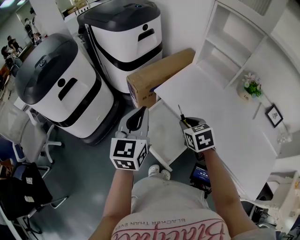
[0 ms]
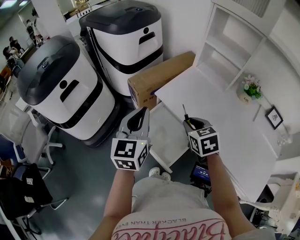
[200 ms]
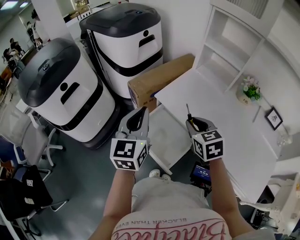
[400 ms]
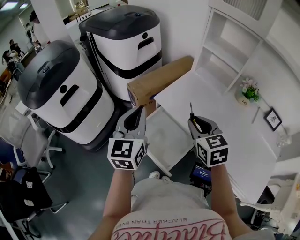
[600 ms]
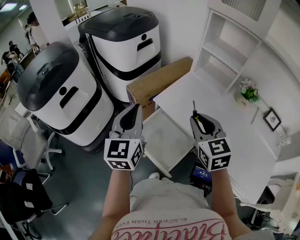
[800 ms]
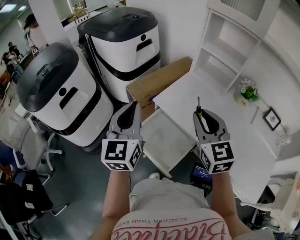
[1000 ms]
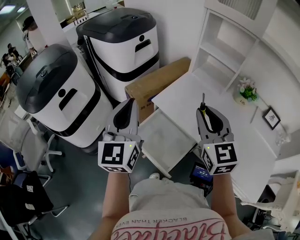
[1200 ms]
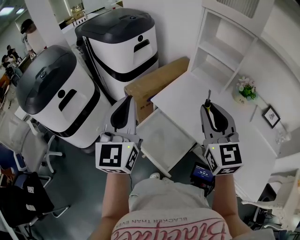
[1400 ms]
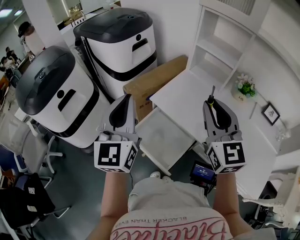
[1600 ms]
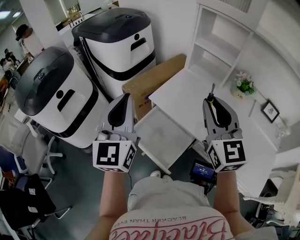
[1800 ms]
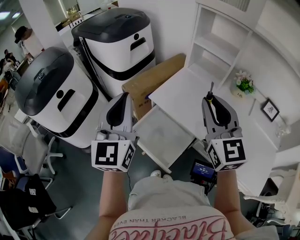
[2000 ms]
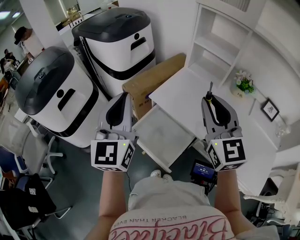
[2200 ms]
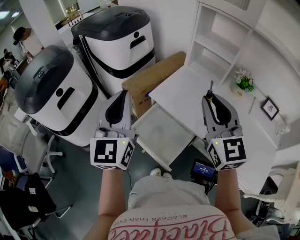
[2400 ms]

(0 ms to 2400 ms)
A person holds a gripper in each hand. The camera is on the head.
0 ms - 1200 ms: The left gripper shifts about 10 cm upward. The right gripper is displaced upward by some 20 cm, and tilts its fingers approximately 40 degrees upward.
1200 ms - 2400 ms: The right gripper changes place by some 5 cm.

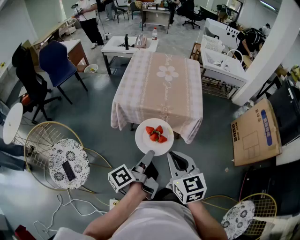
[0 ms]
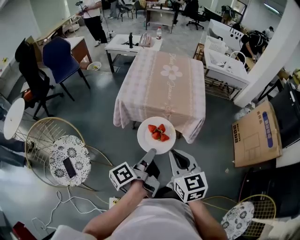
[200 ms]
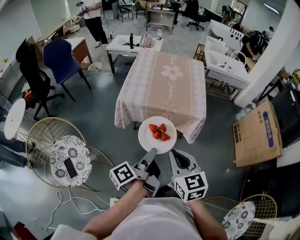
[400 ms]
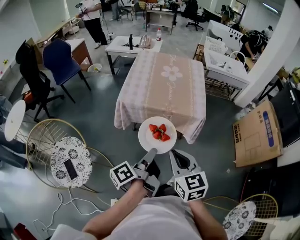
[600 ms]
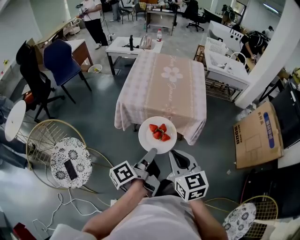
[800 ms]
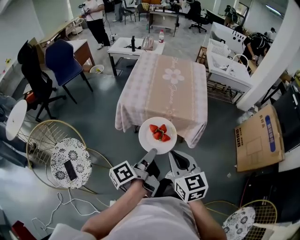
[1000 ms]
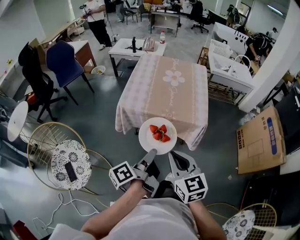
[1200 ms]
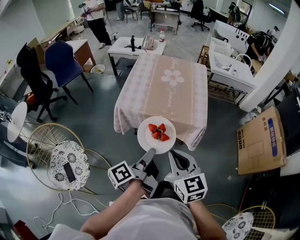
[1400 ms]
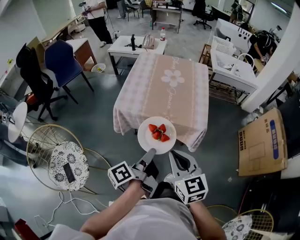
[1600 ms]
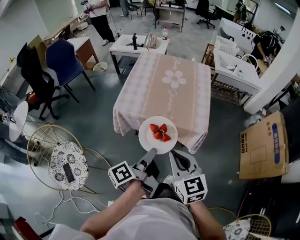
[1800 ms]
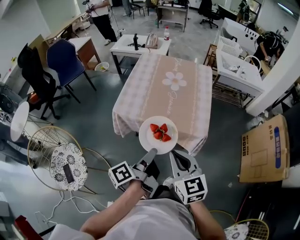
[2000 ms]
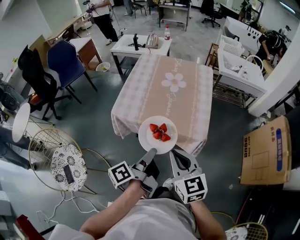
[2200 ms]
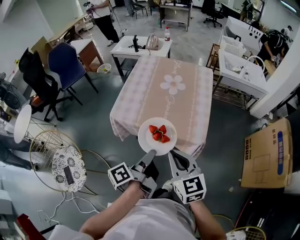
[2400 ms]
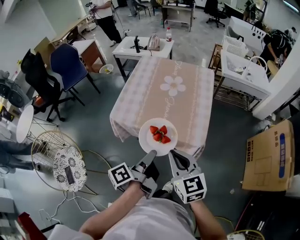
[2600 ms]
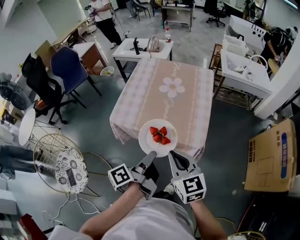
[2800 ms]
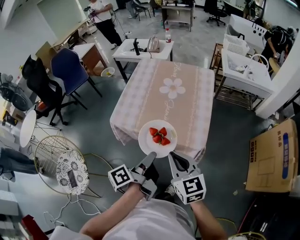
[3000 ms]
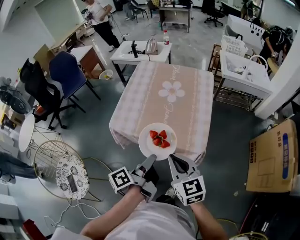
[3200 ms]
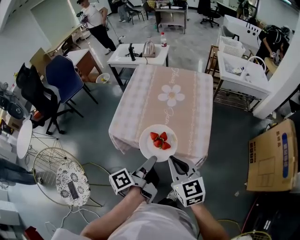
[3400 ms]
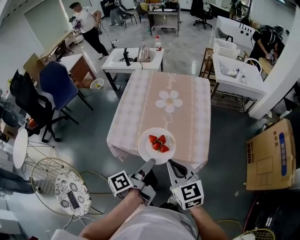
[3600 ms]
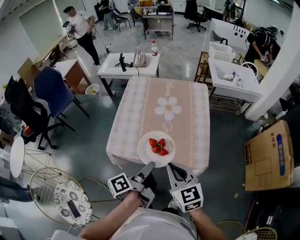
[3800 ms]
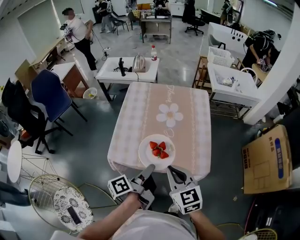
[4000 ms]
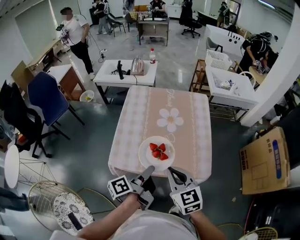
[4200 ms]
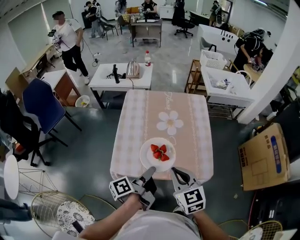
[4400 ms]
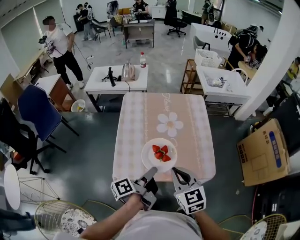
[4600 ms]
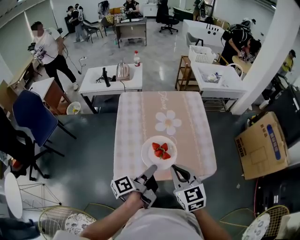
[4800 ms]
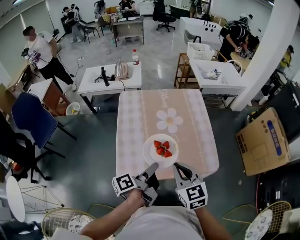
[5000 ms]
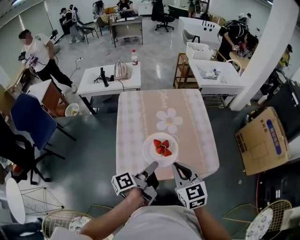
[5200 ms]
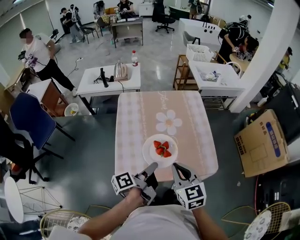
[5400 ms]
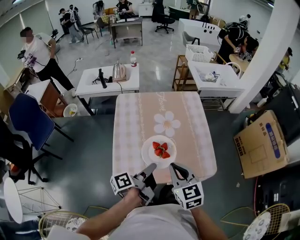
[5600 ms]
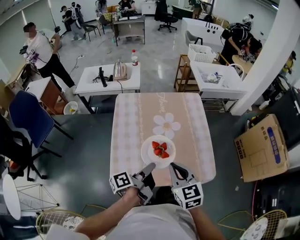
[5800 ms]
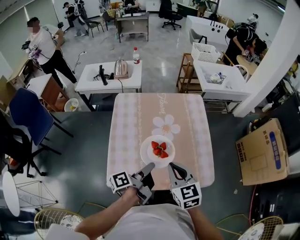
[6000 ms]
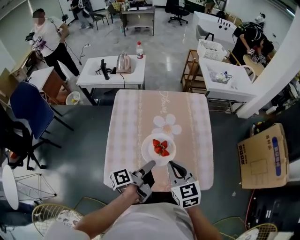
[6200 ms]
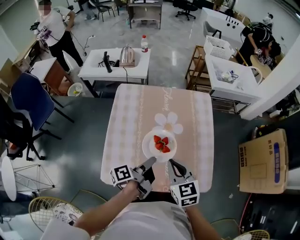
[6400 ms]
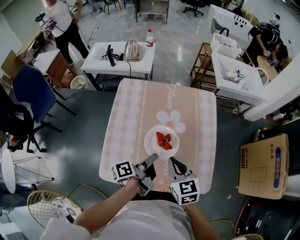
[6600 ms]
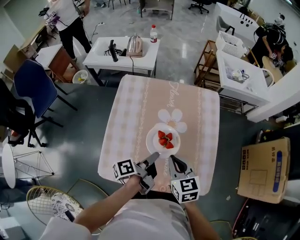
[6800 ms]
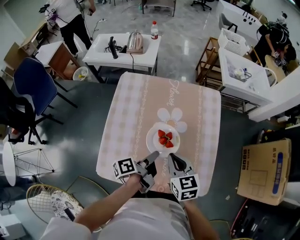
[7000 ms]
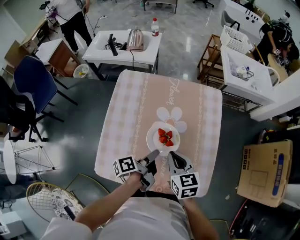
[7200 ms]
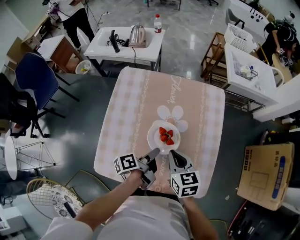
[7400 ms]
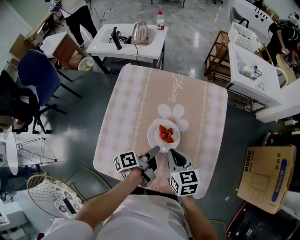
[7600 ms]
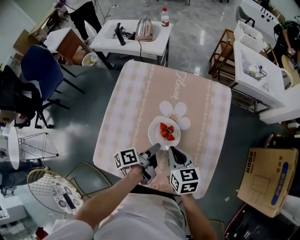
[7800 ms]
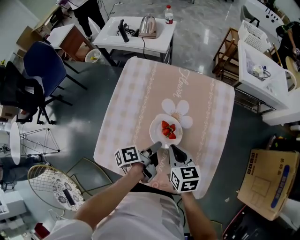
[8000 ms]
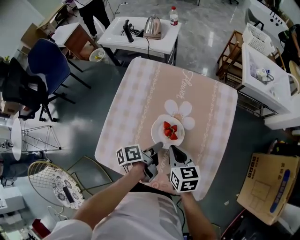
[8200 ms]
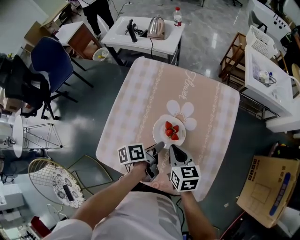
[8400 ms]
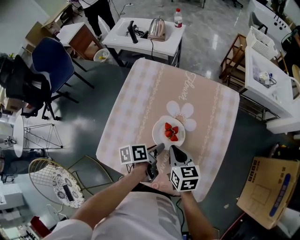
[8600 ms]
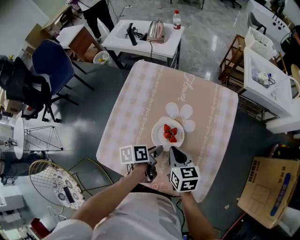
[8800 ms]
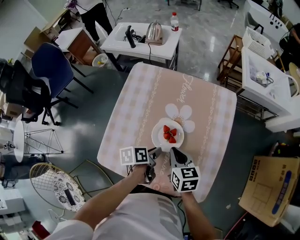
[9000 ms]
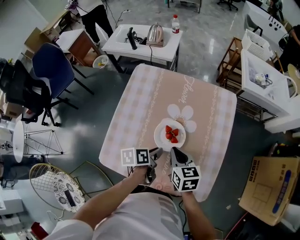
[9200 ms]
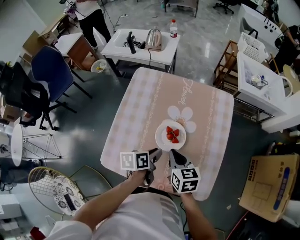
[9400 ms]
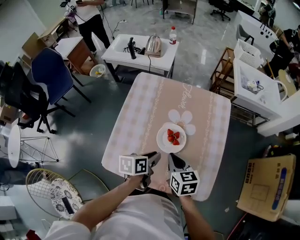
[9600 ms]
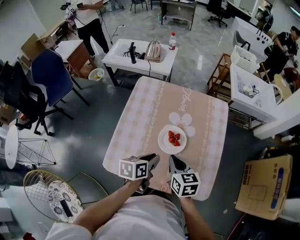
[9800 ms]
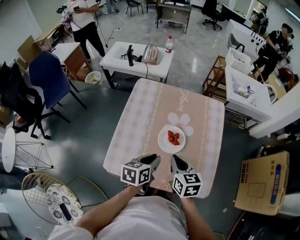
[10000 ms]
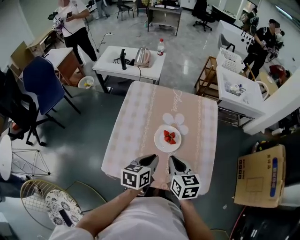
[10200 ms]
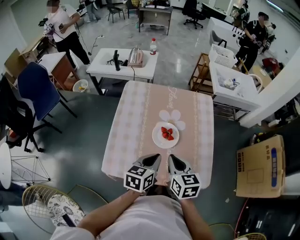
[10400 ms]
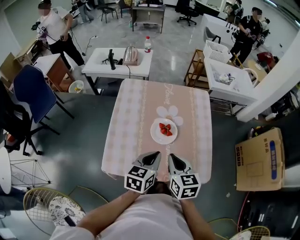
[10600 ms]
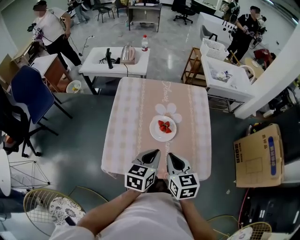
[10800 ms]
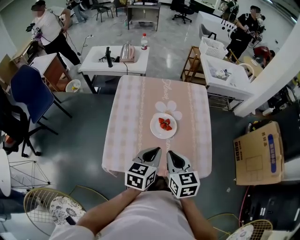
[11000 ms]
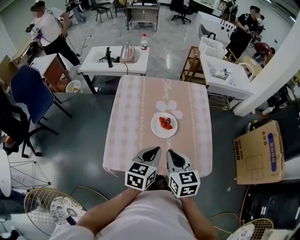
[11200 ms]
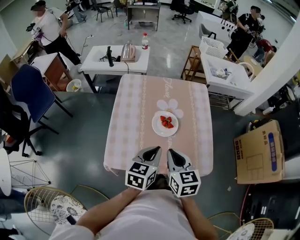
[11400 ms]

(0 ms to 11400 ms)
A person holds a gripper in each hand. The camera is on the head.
0 ms - 1400 ms: The right gripper ends up roughly 5 cm from where it was.
1400 ms - 2800 ms: The right gripper changes place by roughly 15 cm.
2800 ms - 4200 ms: The right gripper ends up approximately 15 cm from where it was.
4200 ms - 5600 ms: The right gripper ends up approximately 5 cm from where it was.
5600 ms - 7200 ms: The right gripper ends up about 20 cm from where it was.
8600 ms - 10000 ms: The right gripper heads upward, covering about 5 cm.
10000 ms - 11400 ms: The right gripper moves about 10 cm.

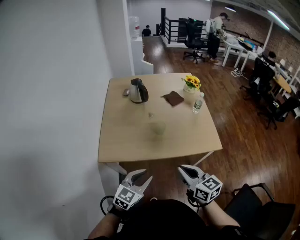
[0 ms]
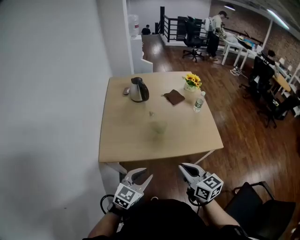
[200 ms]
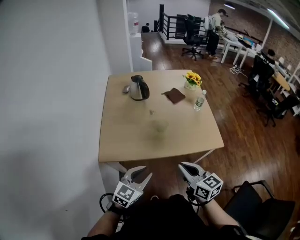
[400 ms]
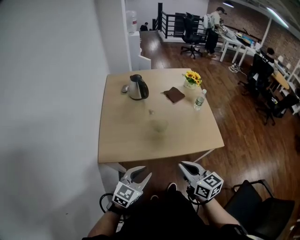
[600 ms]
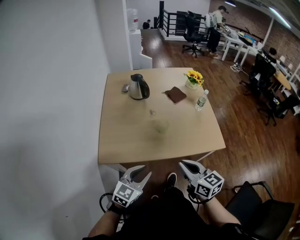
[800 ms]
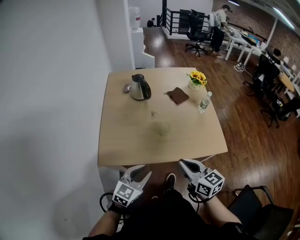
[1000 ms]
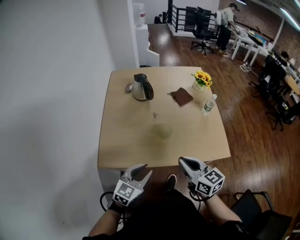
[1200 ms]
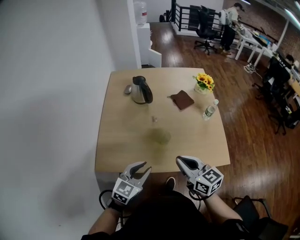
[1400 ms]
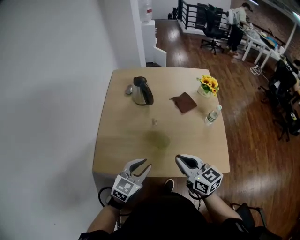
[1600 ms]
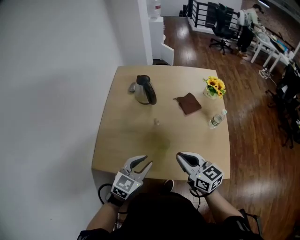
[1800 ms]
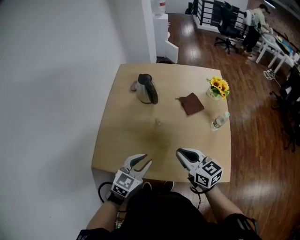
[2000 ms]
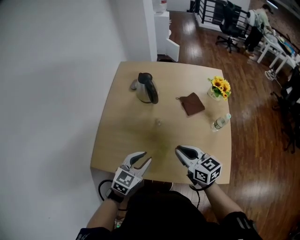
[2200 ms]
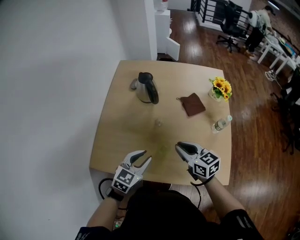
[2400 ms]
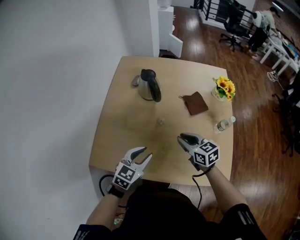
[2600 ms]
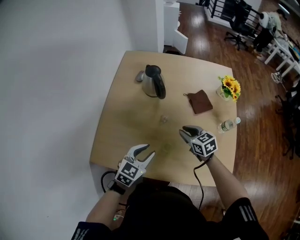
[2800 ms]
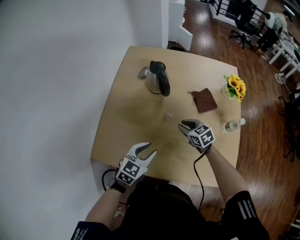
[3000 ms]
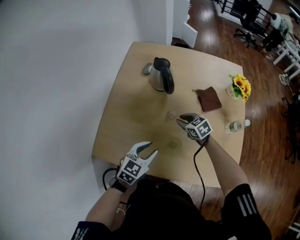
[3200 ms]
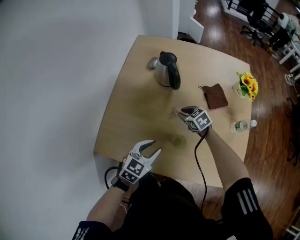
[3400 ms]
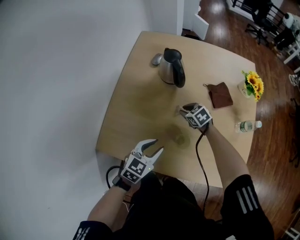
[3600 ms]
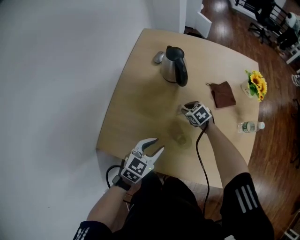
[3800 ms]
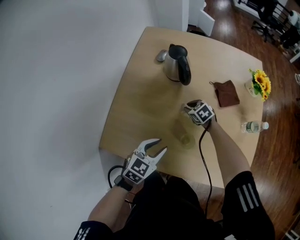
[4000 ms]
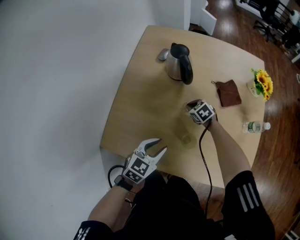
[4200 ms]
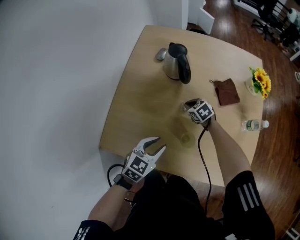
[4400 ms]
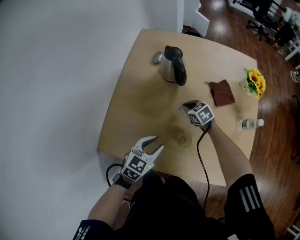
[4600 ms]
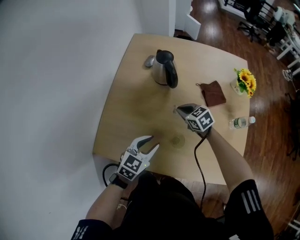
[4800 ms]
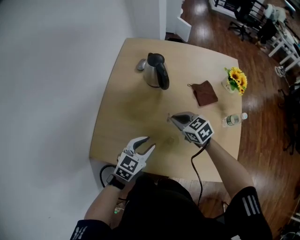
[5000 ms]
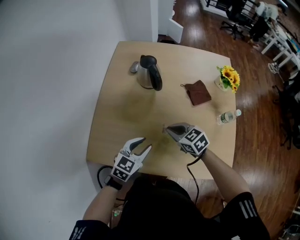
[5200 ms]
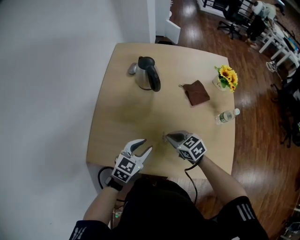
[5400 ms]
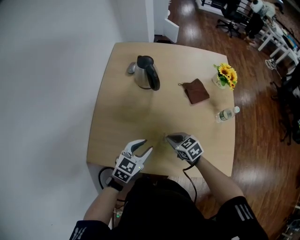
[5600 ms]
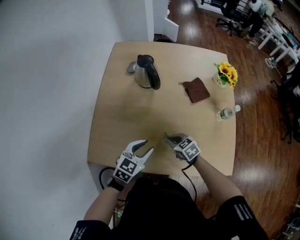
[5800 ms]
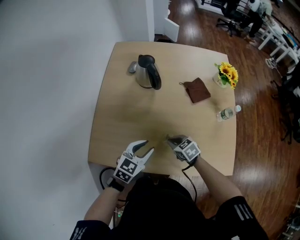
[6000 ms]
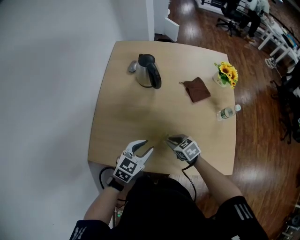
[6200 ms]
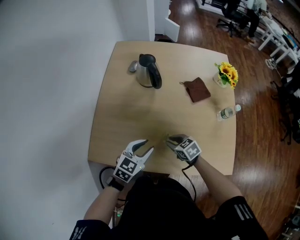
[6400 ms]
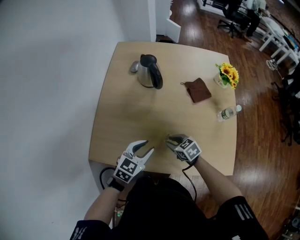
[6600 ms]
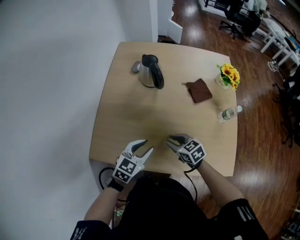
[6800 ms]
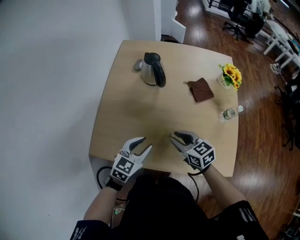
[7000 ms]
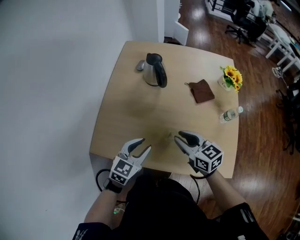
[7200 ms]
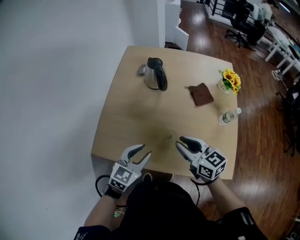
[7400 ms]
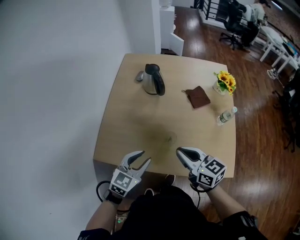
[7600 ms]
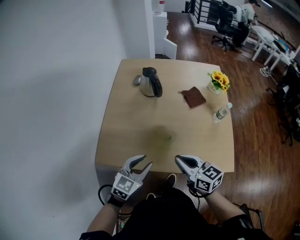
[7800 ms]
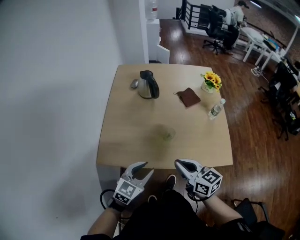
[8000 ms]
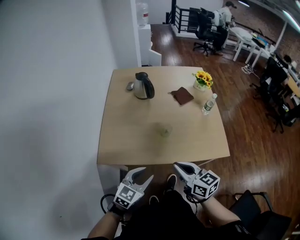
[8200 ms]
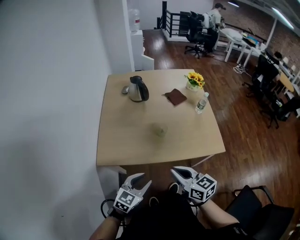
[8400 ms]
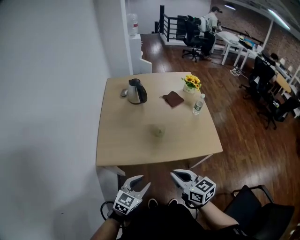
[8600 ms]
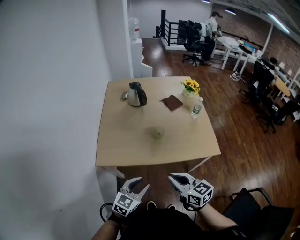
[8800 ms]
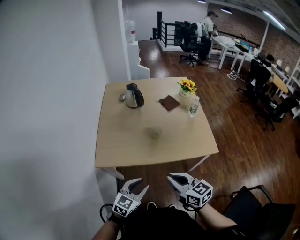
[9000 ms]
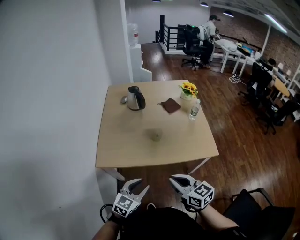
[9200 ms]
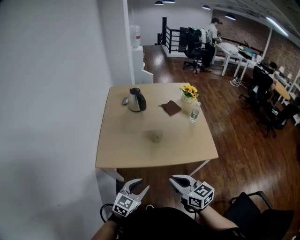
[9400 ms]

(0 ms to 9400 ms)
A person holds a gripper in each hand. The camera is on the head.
0 ms - 1600 ms: Both grippers move forward, about 25 cm.
1600 ms - 3200 ms: The left gripper travels forward and downward by roughly 15 cm, while the right gripper shifts approximately 35 cm forward and downward, tips its fingers downward by about 30 degrees, and opens up.
3200 ms - 4800 ms: The right gripper moves about 10 cm downward and comes back, and closes its fingers.
4800 ms - 6200 ms: The right gripper shifts roughly 15 cm backward.
6200 ms - 7800 ms: The left gripper travels backward and upward by approximately 15 cm, while the right gripper shifts roughly 25 cm upward and backward, and angles its fingers upward, by some 30 degrees.
7800 ms - 9400 ms: Both grippers travel together backward, approximately 25 cm.

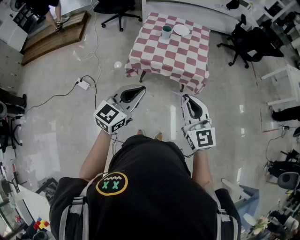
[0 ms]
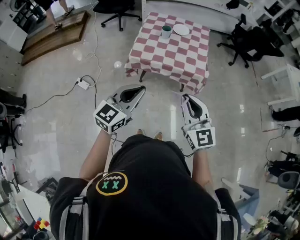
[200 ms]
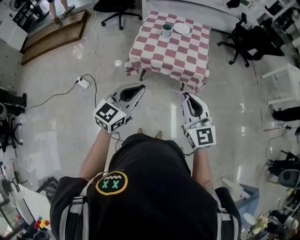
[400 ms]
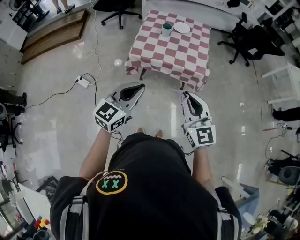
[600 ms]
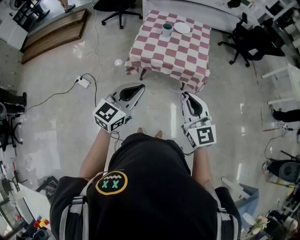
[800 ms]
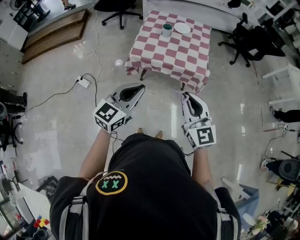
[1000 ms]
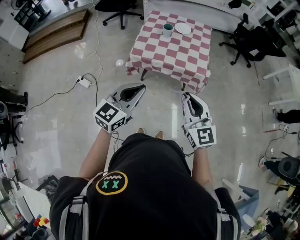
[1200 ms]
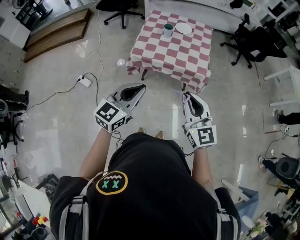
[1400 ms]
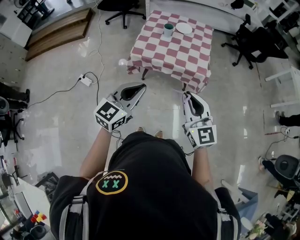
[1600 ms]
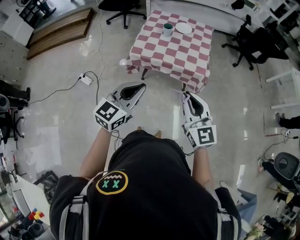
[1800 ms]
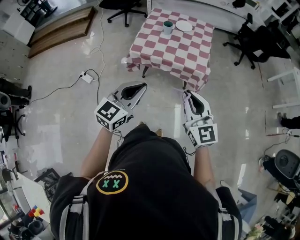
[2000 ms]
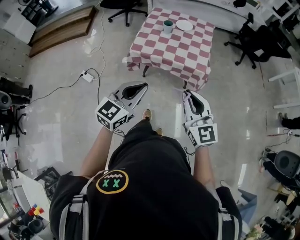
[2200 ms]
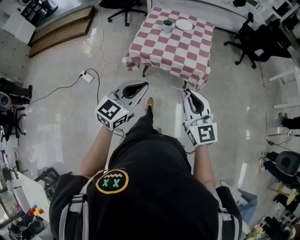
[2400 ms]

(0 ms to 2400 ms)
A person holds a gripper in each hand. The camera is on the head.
0 ms - 1200 ms: Both grippers stay put.
1200 ms - 2400 ms: Both grippers move to the right, roughly 5 cm.
